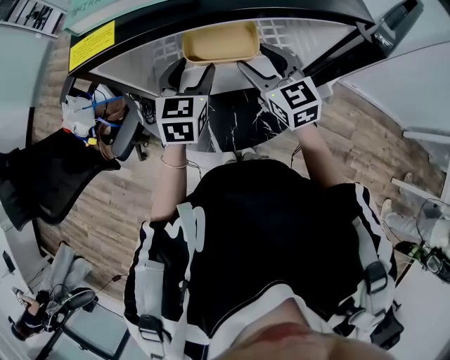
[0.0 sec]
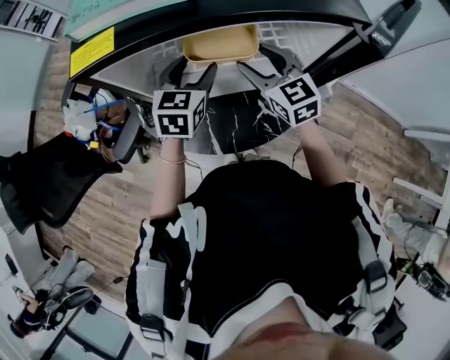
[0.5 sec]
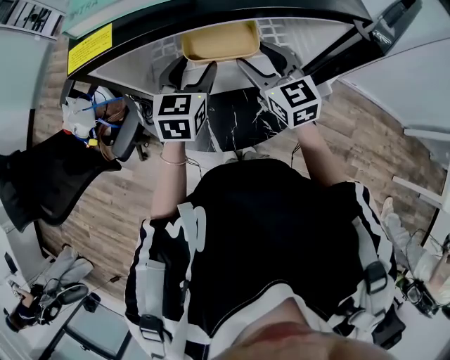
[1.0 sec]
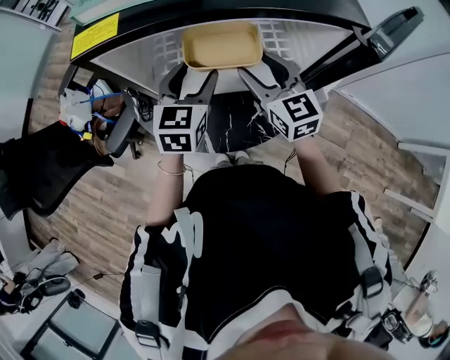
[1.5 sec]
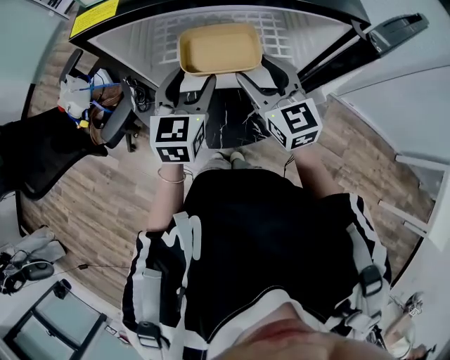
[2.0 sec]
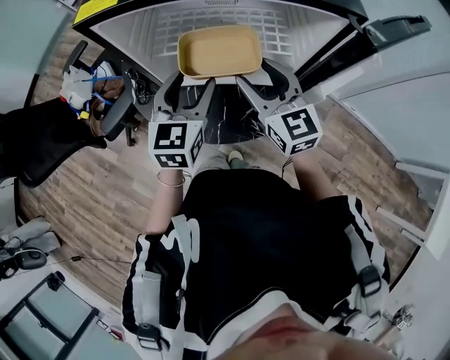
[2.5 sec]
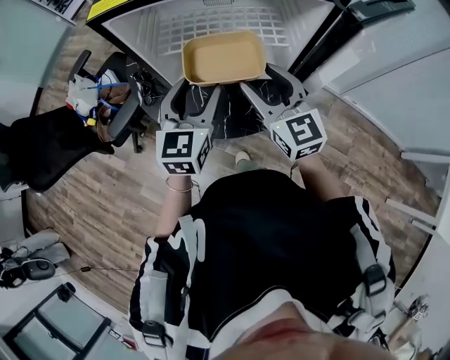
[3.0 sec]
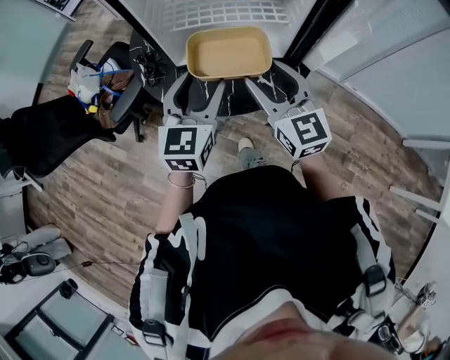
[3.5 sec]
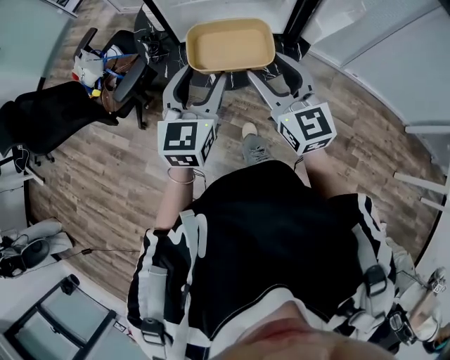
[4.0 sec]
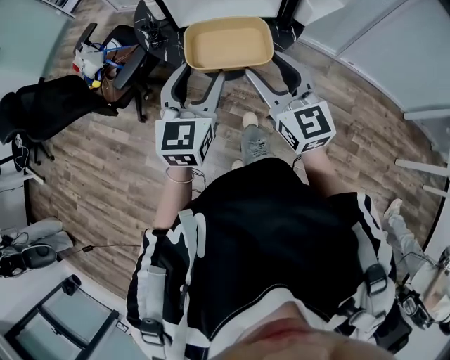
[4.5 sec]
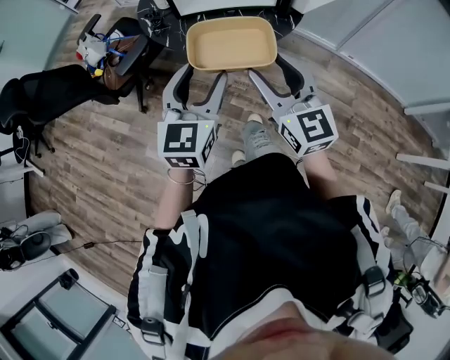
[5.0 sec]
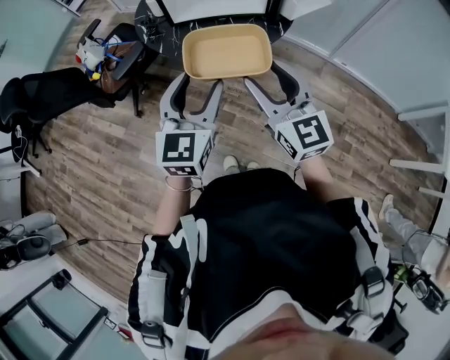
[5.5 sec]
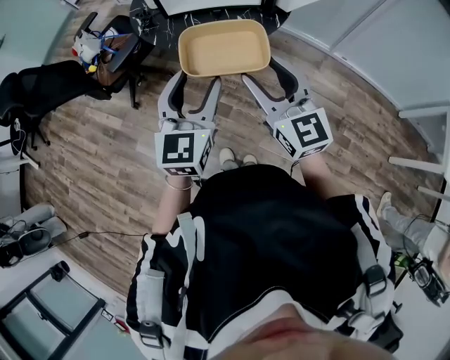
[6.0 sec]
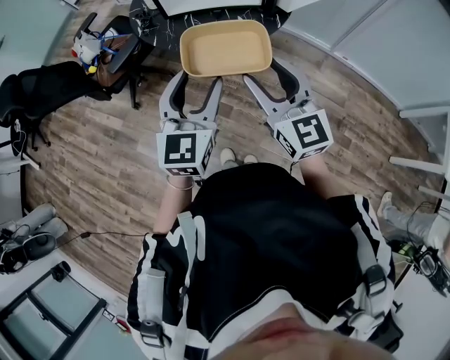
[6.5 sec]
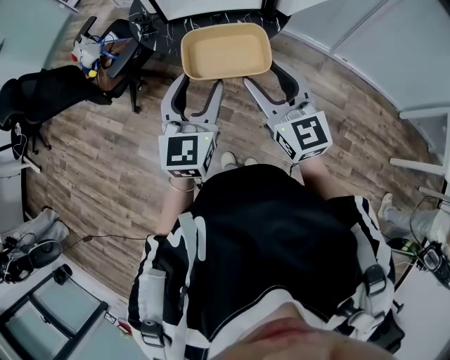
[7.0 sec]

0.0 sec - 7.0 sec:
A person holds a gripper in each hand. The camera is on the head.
0.0 sec - 2.0 sec: Both grippers move backward, roughly 5 cm.
2.0 sec - 3.5 sec: The grippers both shift backward by about 15 cm.
3.5 sec - 5.0 sec: The grippers both shift backward by some 25 cm.
5.0 sec - 7.0 sec: The two grippers go some 5 cm to the right.

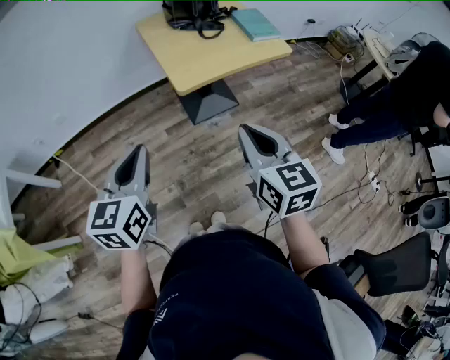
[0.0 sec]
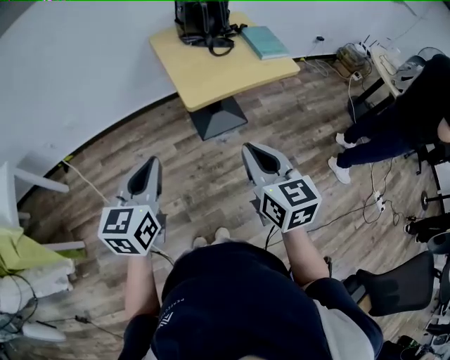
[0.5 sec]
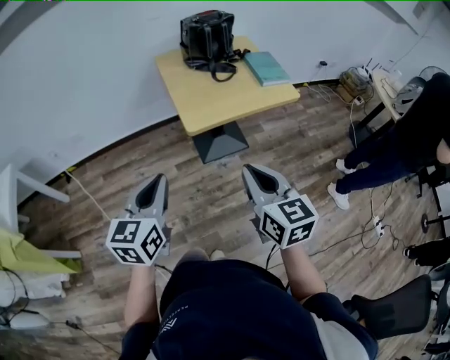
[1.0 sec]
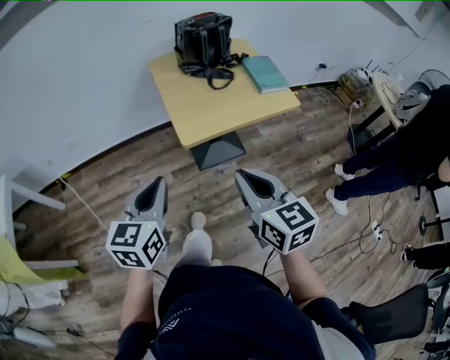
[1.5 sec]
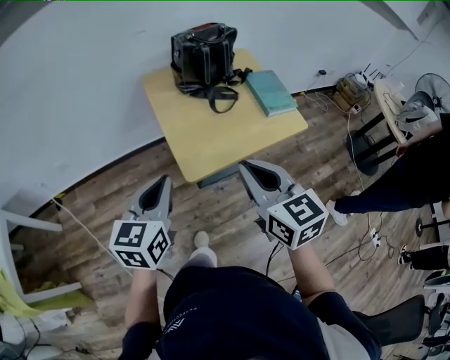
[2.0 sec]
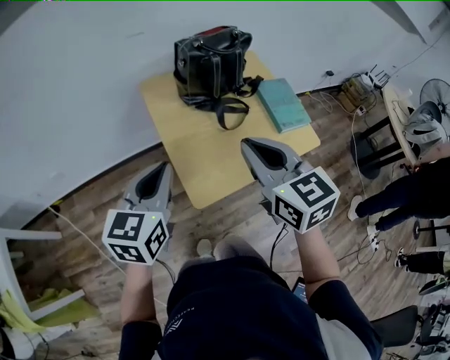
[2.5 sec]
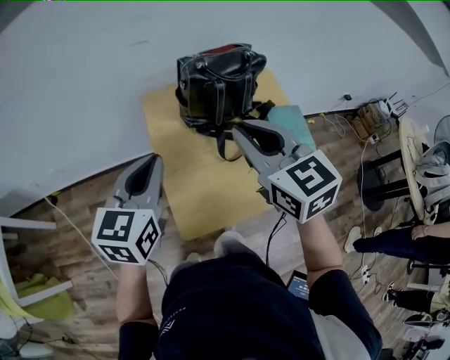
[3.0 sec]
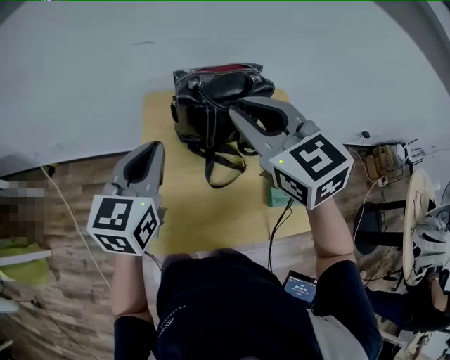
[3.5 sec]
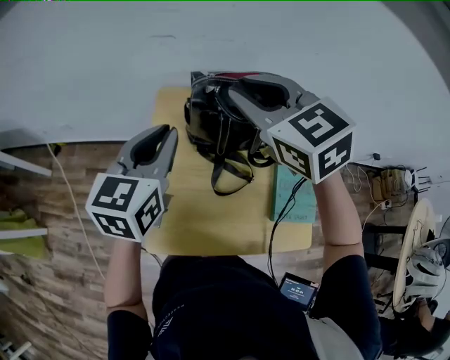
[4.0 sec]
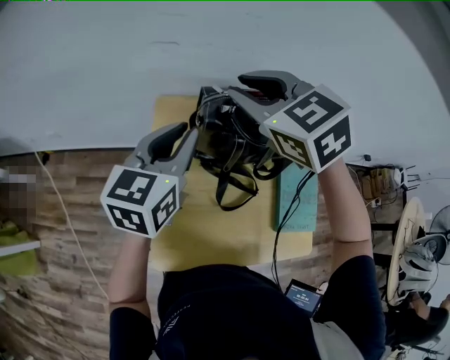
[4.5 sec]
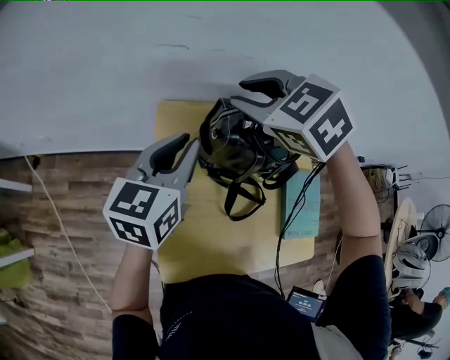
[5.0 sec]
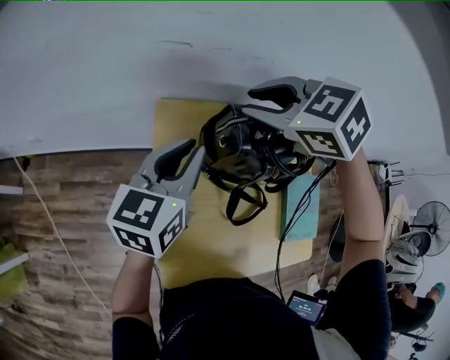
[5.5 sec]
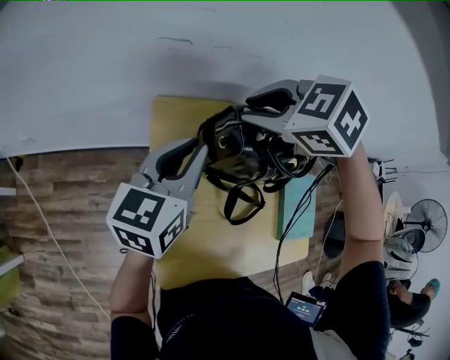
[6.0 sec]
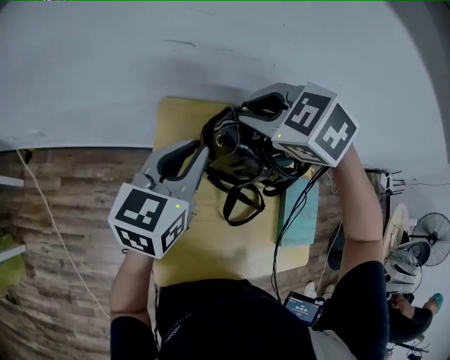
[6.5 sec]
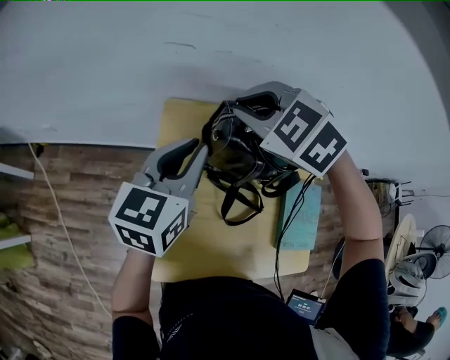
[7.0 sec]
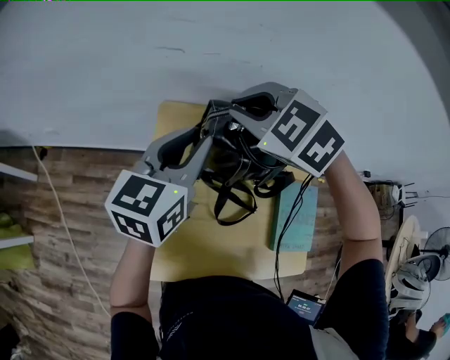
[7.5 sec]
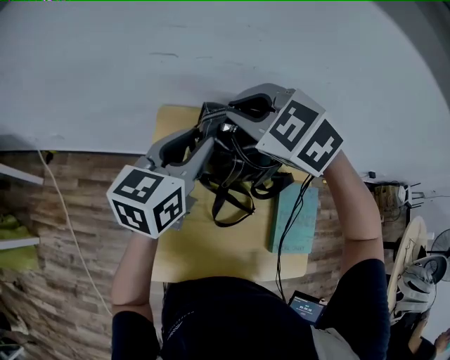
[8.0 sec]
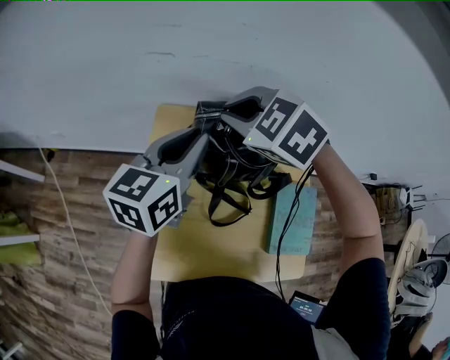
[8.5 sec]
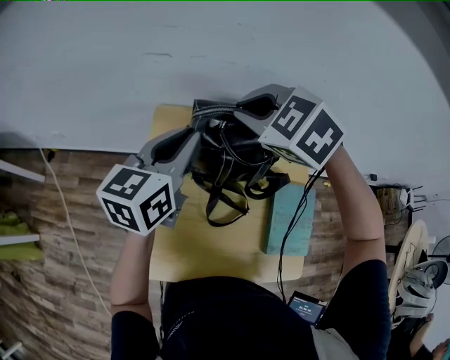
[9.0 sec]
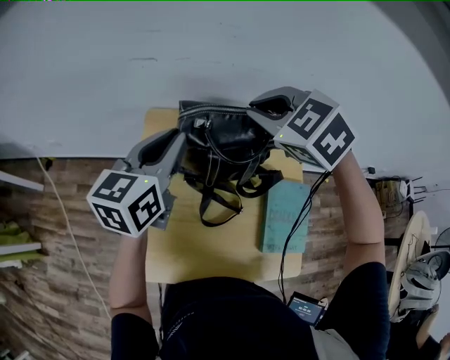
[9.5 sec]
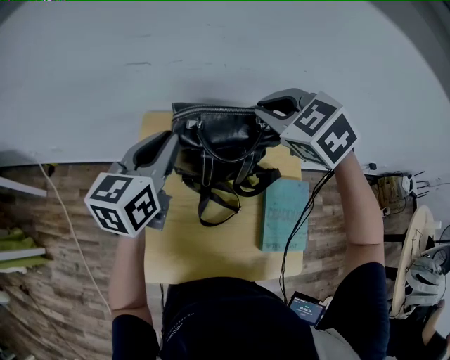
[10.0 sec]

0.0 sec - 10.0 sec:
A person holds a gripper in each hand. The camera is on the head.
0.0 sec - 2.0 sec: The two grippers go roughly 20 cm forward.
2.0 sec - 4.0 sec: The right gripper changes place by about 50 cm, changes its angle by roughly 40 degrees, and opens its fingers, while the left gripper changes place by roughly 35 cm, and swivels about 20 degrees.
4.0 sec - 6.0 sec: Both grippers travel together forward and downward, about 10 cm. The left gripper turns by roughly 20 degrees; the right gripper points its fingers about 40 degrees further downward.
6.0 sec - 8.0 sec: The left gripper shifts roughly 5 cm to the right; the right gripper changes place by approximately 5 cm, and turns by roughly 20 degrees.
8.0 sec - 10.0 sec: The right gripper travels to the right by roughly 15 cm.

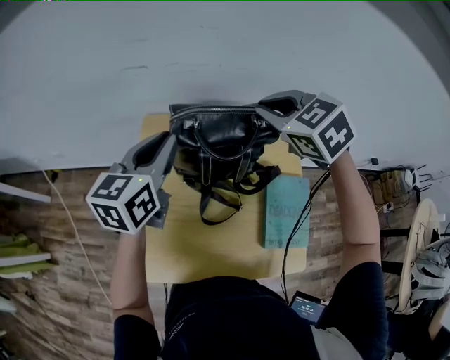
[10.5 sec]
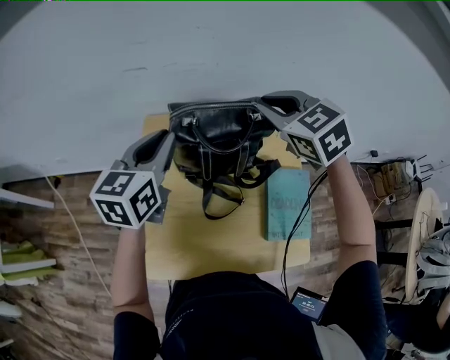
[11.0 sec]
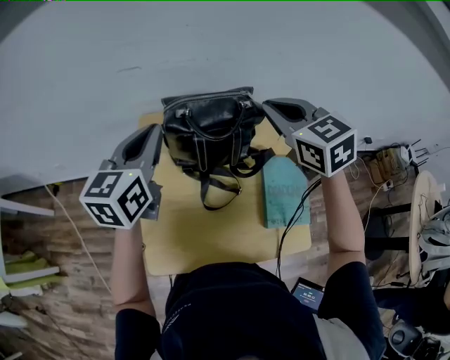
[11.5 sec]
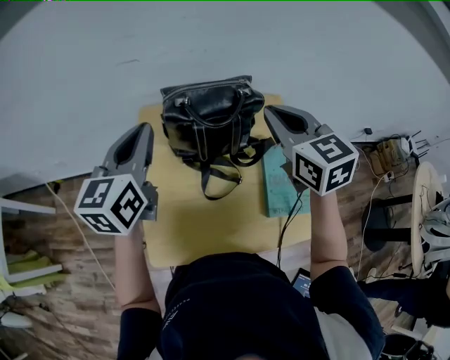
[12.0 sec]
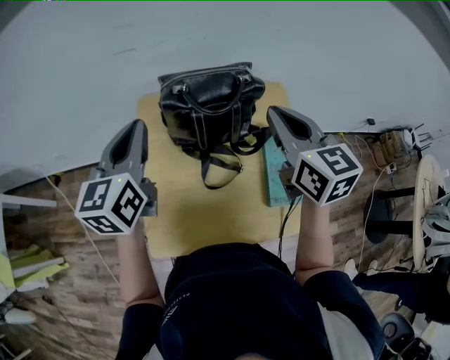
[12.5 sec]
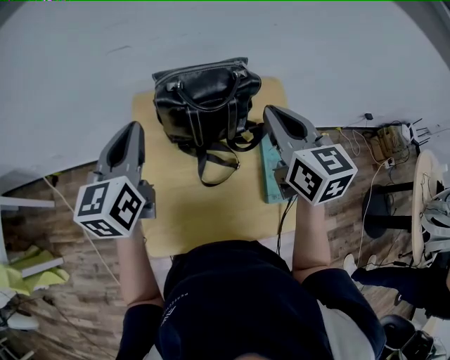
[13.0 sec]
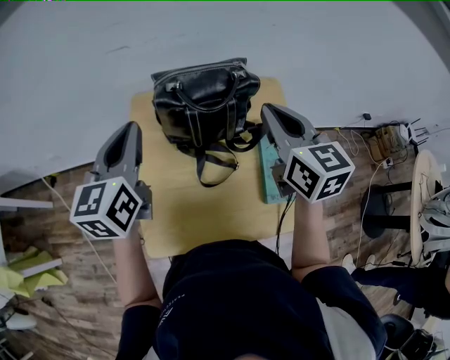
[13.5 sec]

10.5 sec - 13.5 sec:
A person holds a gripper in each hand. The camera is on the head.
10.5 sec - 12.0 sec: The right gripper is displaced backward by approximately 10 cm, and swivels some 40 degrees, while the left gripper shifts by about 5 cm.
12.0 sec - 13.5 sec: The grippers make only small movements.

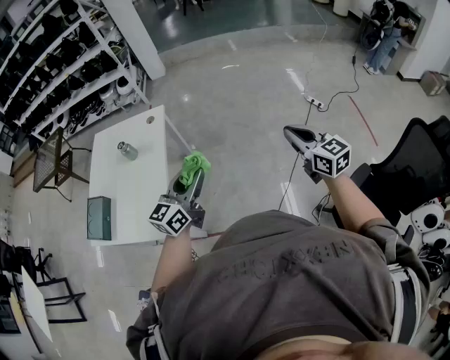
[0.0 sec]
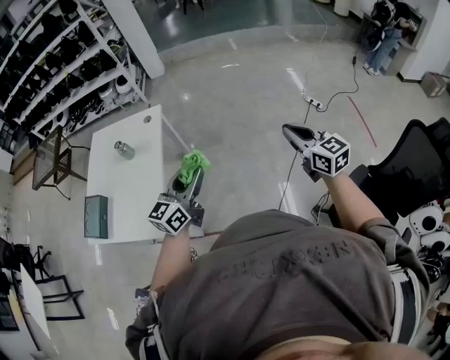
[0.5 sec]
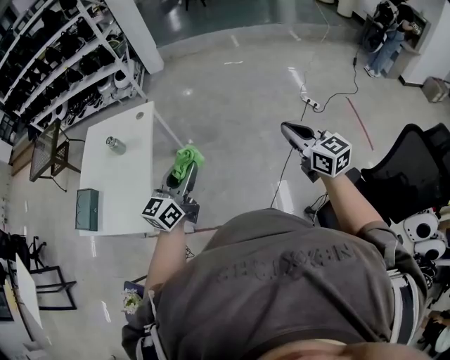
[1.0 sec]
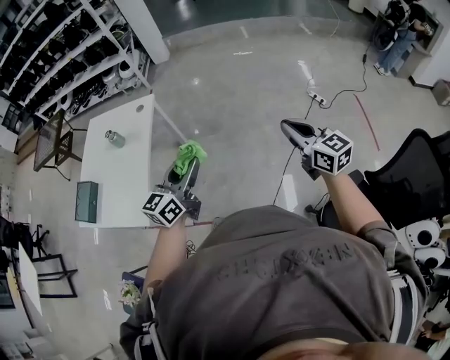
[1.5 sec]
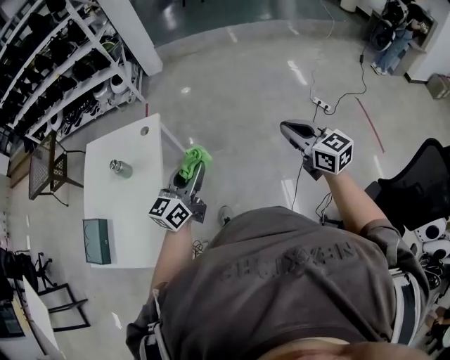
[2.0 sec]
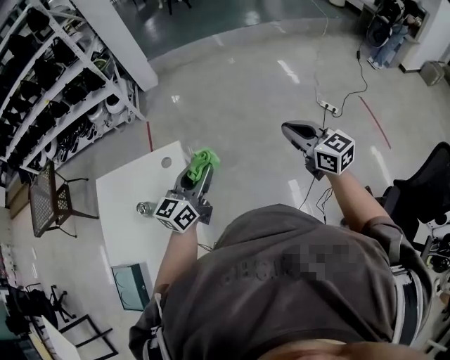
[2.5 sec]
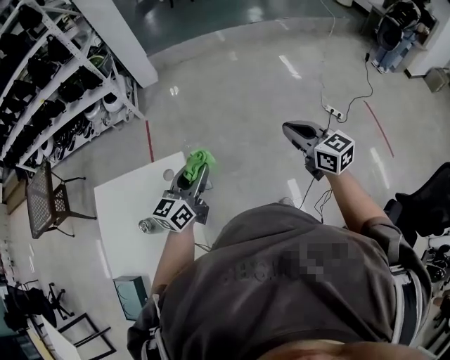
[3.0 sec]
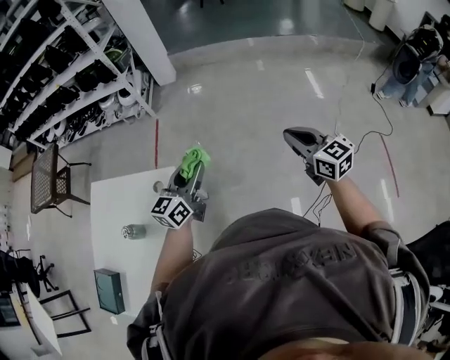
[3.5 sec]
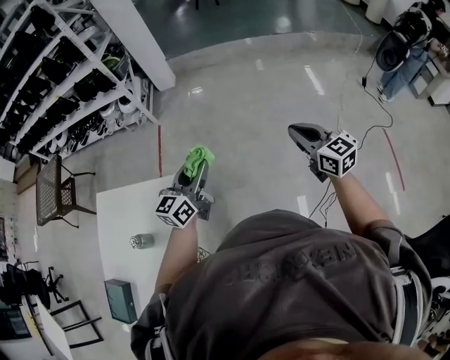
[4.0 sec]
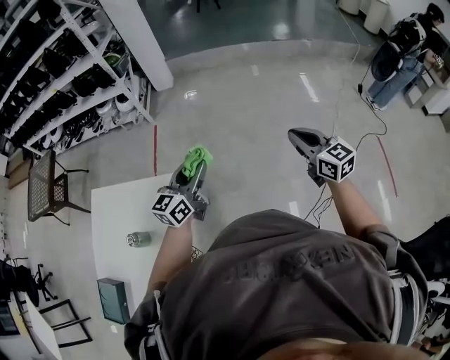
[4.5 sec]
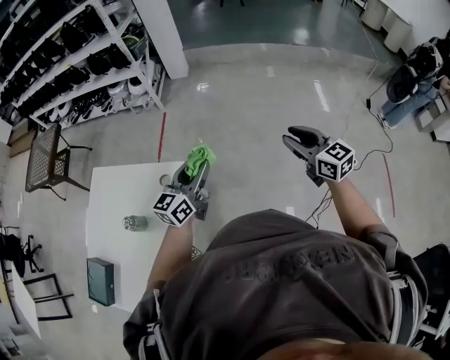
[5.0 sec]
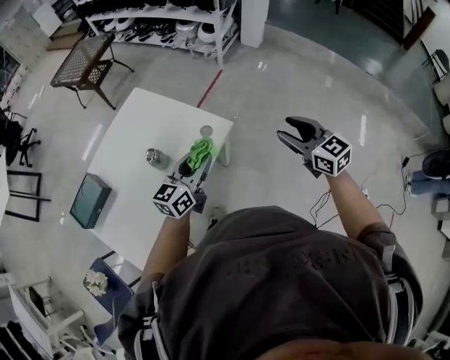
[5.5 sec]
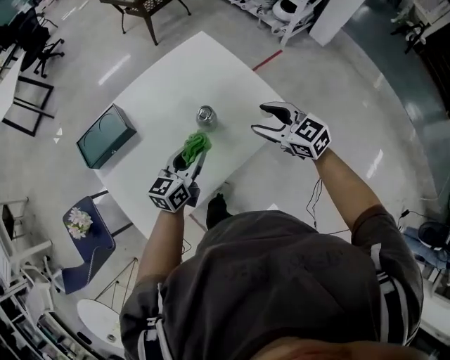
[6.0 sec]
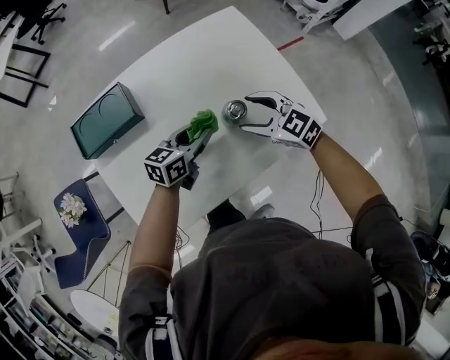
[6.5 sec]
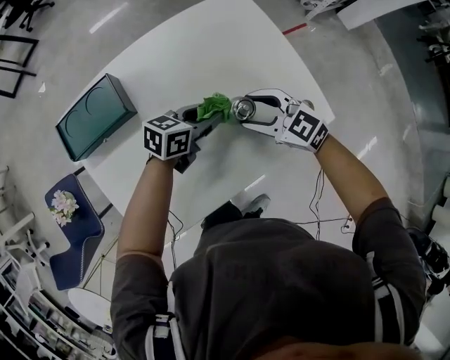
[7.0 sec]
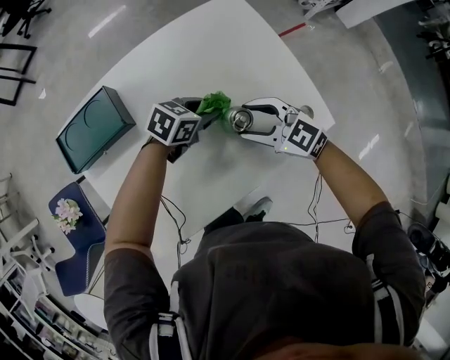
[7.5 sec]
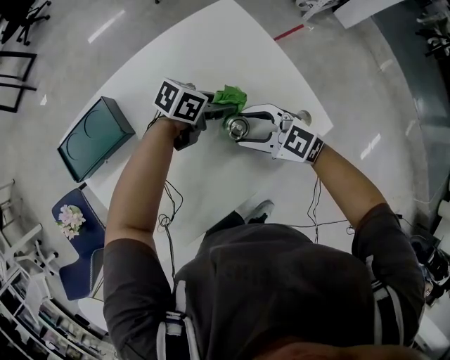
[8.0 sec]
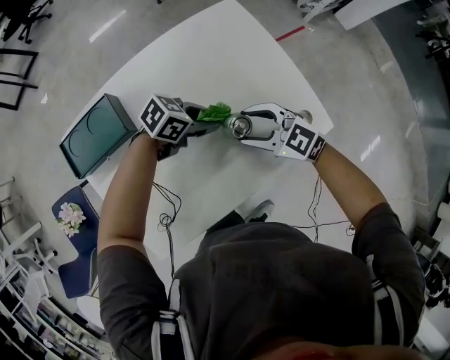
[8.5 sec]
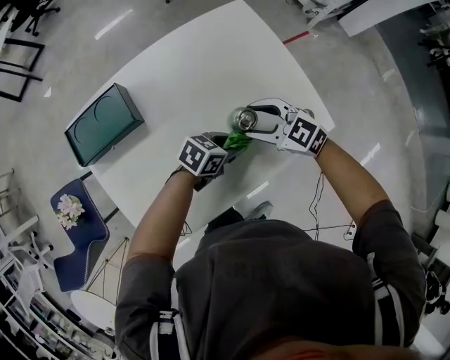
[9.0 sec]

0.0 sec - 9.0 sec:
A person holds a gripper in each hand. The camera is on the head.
0.0 sec - 2.0 sec: Both grippers travel together forward, approximately 15 cm.
2.0 sec - 4.5 sec: The two grippers go about 40 cm forward.
4.5 sec - 7.0 sec: The two grippers travel together, about 60 cm. The left gripper changes its angle by some 40 degrees. Meanwhile the right gripper rotates roughly 100 degrees, and opens.
7.0 sec - 9.0 sec: The left gripper moves approximately 10 cm.
